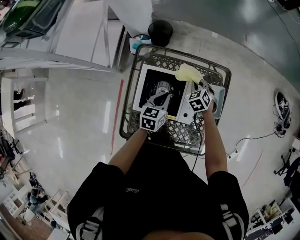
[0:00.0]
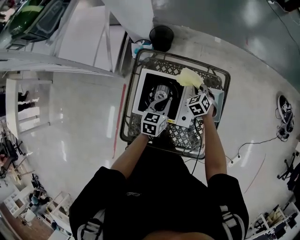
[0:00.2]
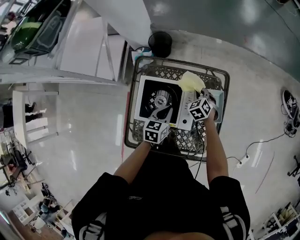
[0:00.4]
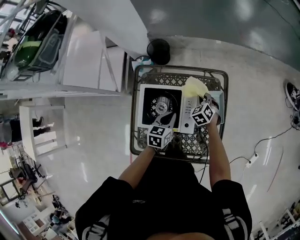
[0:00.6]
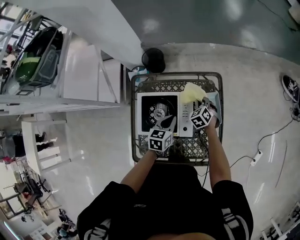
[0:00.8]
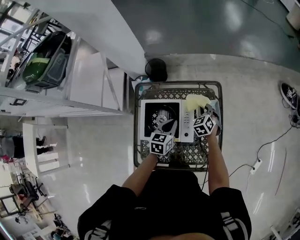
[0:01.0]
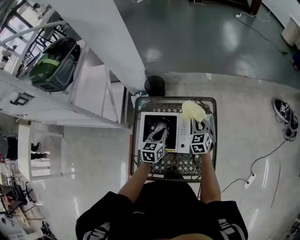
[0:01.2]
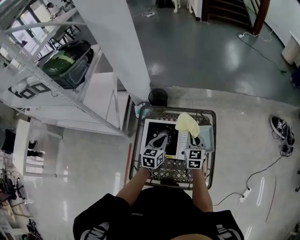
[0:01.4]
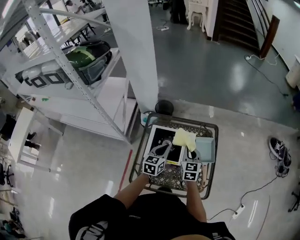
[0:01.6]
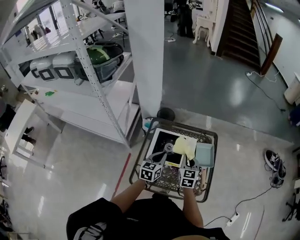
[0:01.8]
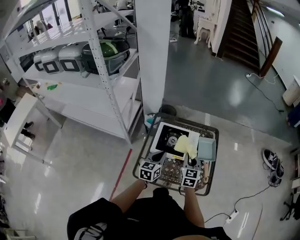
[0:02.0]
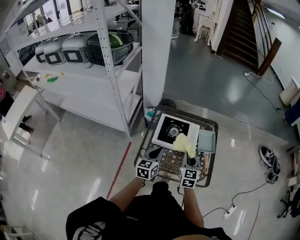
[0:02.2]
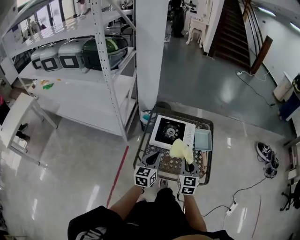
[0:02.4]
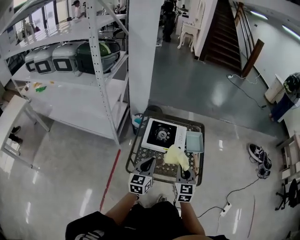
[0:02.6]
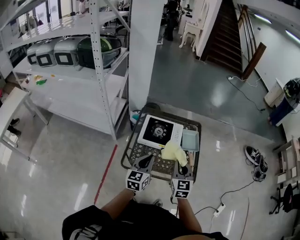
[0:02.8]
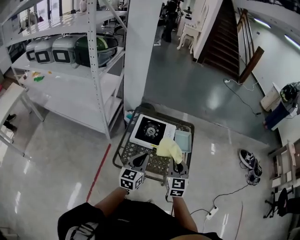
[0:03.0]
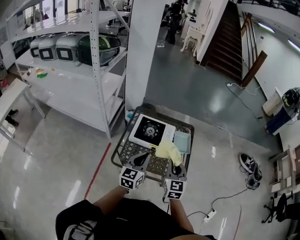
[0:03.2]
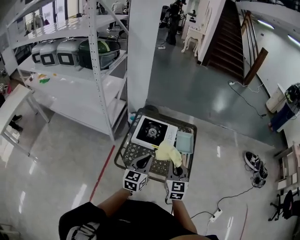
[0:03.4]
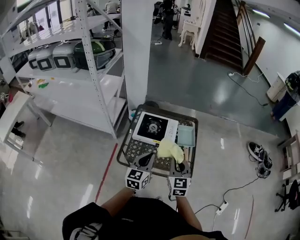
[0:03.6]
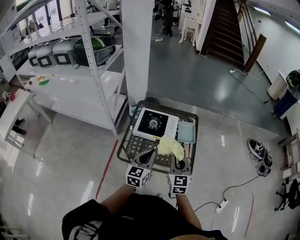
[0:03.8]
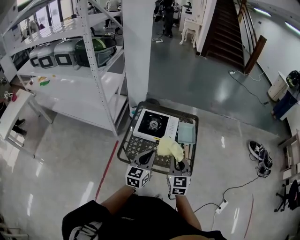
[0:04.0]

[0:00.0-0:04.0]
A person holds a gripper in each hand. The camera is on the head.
0.0 to 1.4 s: The right gripper moves upward and backward, some 20 cm, and tips its fingers upward by roughly 40 degrees. The left gripper heads upward, covering approximately 10 cm.
1.4 to 2.6 s: The two grippers go about 35 cm backward.
2.6 to 4.0 s: The left gripper goes some 10 cm to the right. Meanwhile the right gripper moves to the right, roughly 5 cm.

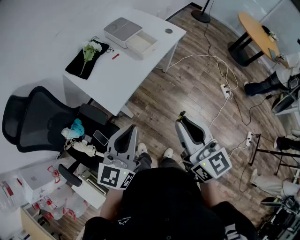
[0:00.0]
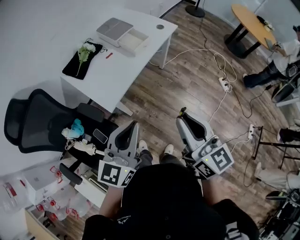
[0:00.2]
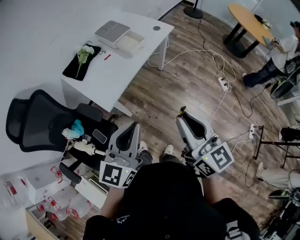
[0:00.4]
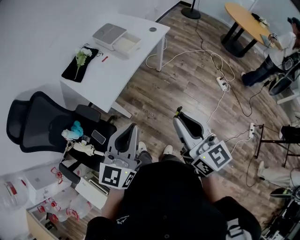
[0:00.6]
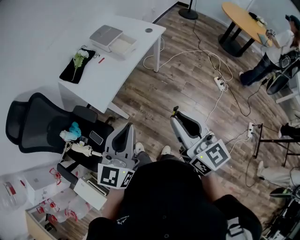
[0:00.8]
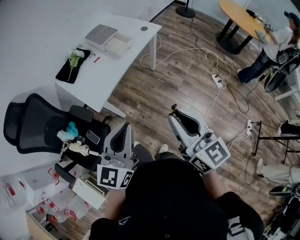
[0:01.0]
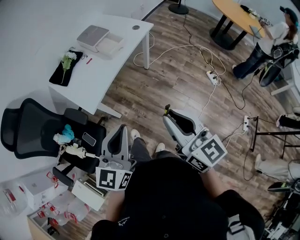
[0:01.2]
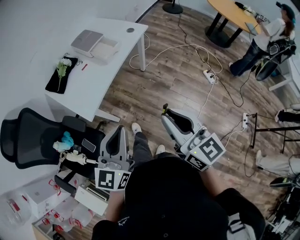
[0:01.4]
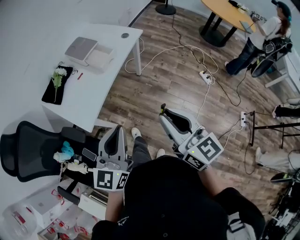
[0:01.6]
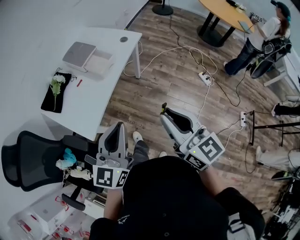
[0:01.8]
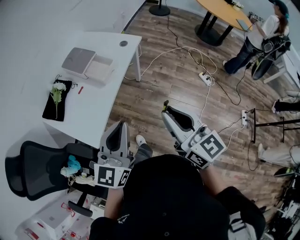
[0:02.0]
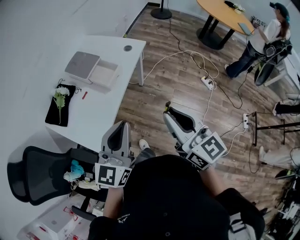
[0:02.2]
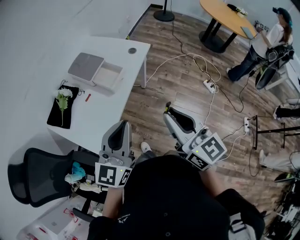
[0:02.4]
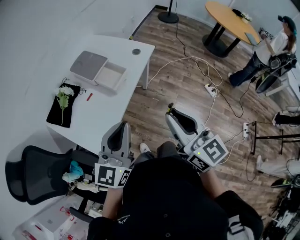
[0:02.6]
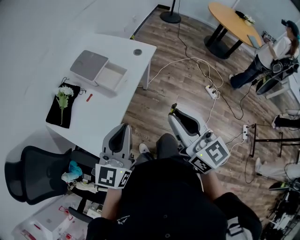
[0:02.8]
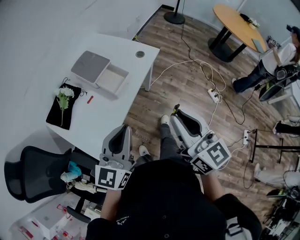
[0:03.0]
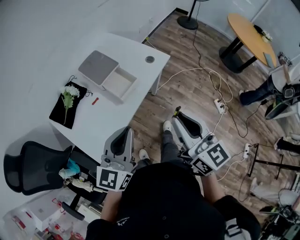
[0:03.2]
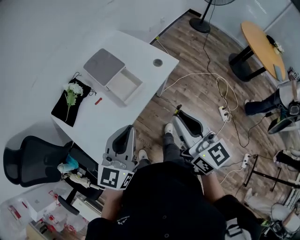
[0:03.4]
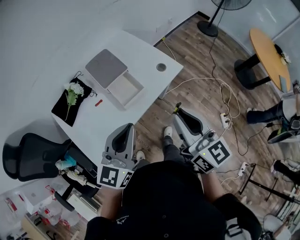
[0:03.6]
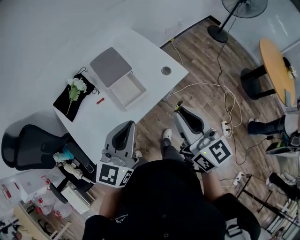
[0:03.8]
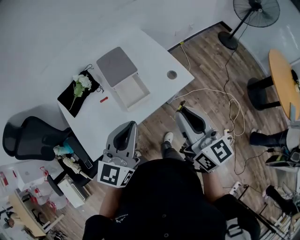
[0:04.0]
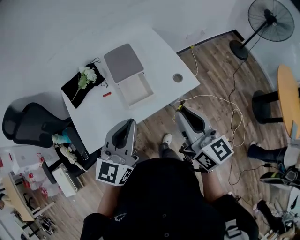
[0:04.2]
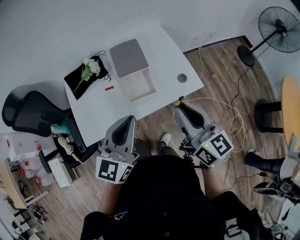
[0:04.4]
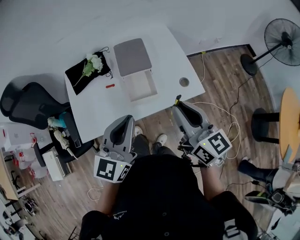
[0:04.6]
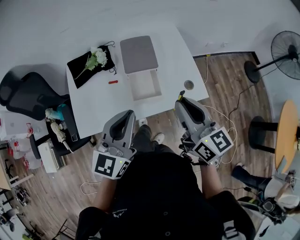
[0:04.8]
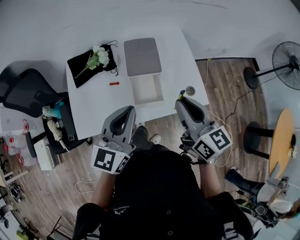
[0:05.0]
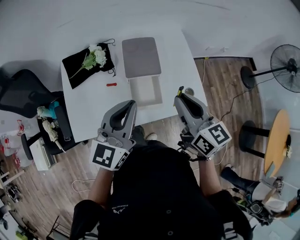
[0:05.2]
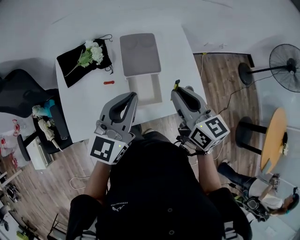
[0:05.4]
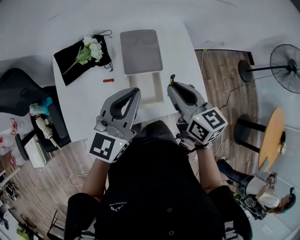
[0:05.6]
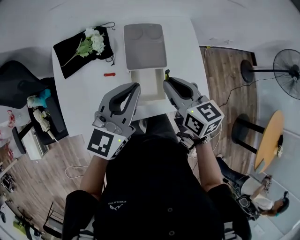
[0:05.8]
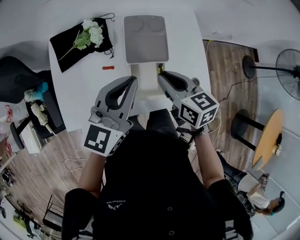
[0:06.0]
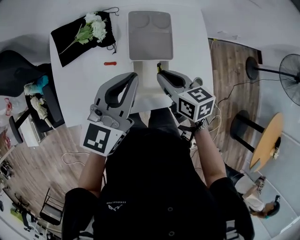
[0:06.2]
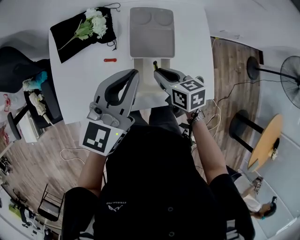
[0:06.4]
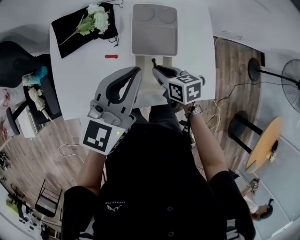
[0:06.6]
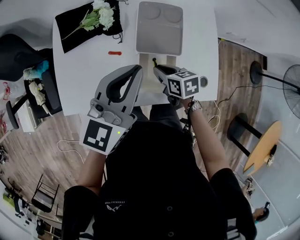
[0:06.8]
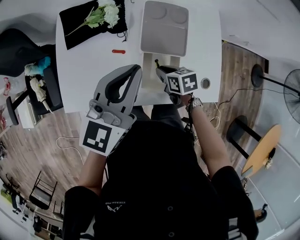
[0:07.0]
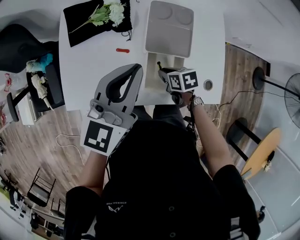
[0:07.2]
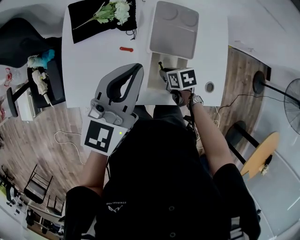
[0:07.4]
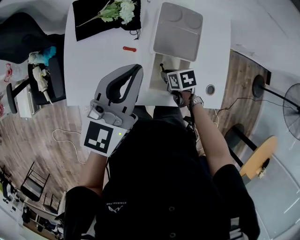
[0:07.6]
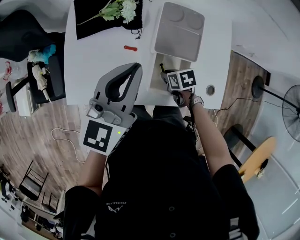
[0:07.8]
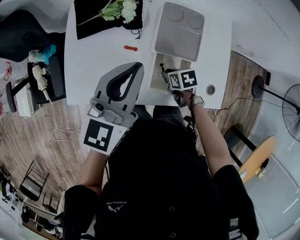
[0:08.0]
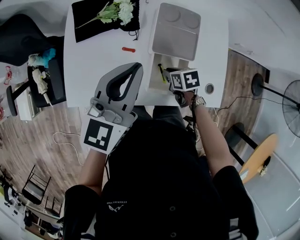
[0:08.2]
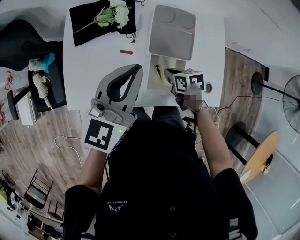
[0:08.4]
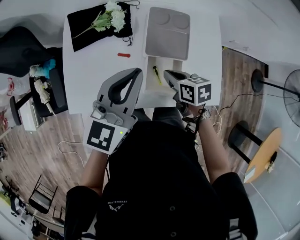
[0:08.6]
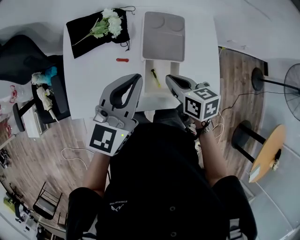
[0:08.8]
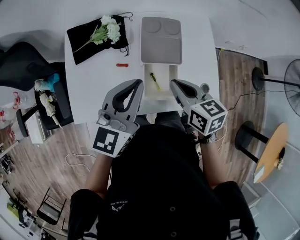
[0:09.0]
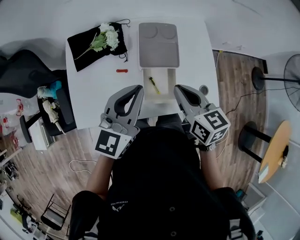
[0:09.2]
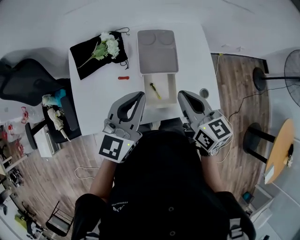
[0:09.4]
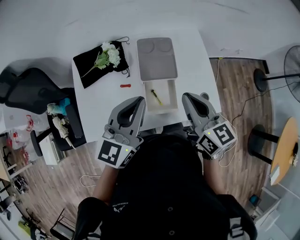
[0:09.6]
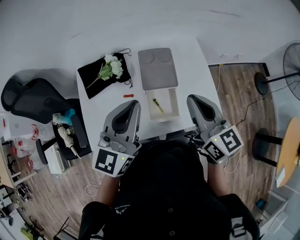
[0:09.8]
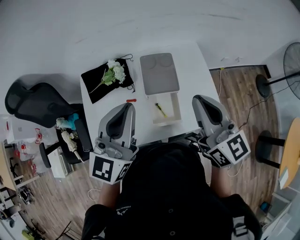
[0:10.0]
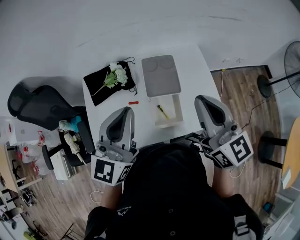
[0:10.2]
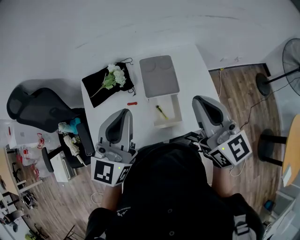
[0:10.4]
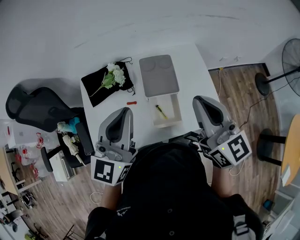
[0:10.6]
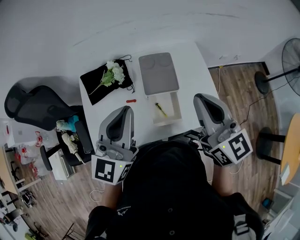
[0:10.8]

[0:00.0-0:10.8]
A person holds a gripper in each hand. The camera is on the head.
0.0 to 1.6 s: The two grippers go some 15 cm to the right.
1.6 to 3.0 s: The grippers both shift forward by some 20 cm.
3.0 to 4.6 s: The right gripper shifts by roughly 25 cm, and turns by roughly 40 degrees; the left gripper moves some 15 cm, and rotates roughly 40 degrees.
4.6 to 6.2 s: The left gripper travels forward by about 20 cm, while the right gripper is displaced forward, downward and to the left by approximately 30 cm, and angles its fingers downward, by roughly 30 degrees.
6.2 to 7.8 s: The left gripper heads to the left, covering approximately 5 cm. The right gripper is displaced downward by roughly 20 cm, and swivels roughly 40 degrees.
7.8 to 9.2 s: The right gripper moves upward, about 25 cm, and points its fingers about 40 degrees further upward, while the left gripper ends up roughly 5 cm from where it was.
9.2 to 10.8 s: The right gripper goes about 15 cm upward, and swivels about 30 degrees; the left gripper is displaced upward by some 10 cm.

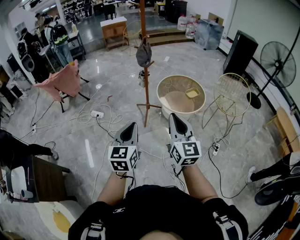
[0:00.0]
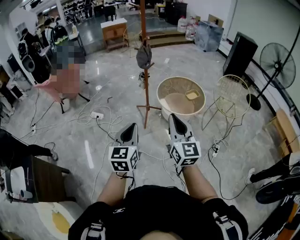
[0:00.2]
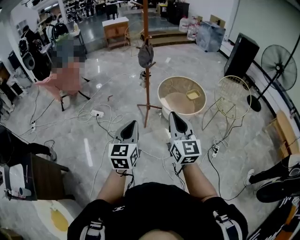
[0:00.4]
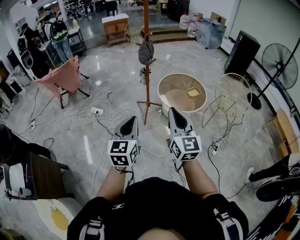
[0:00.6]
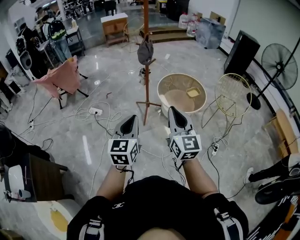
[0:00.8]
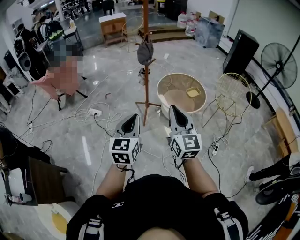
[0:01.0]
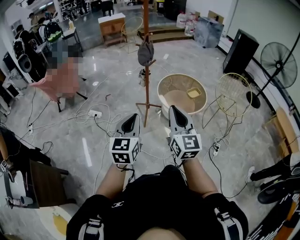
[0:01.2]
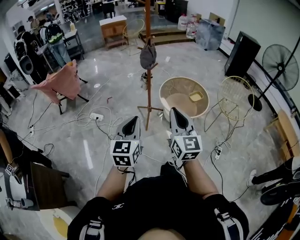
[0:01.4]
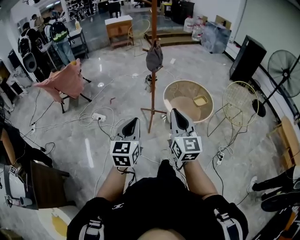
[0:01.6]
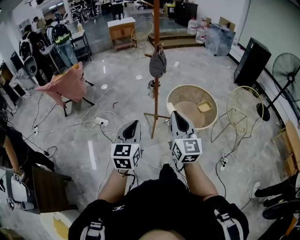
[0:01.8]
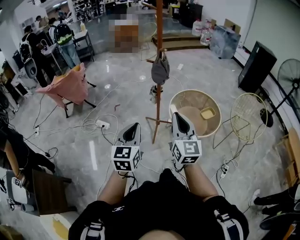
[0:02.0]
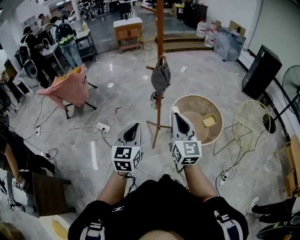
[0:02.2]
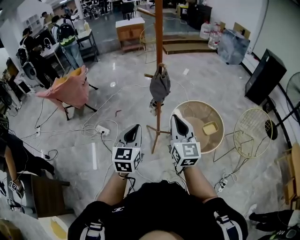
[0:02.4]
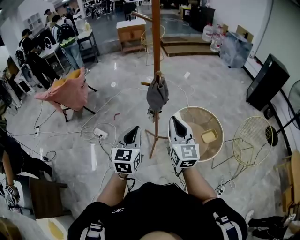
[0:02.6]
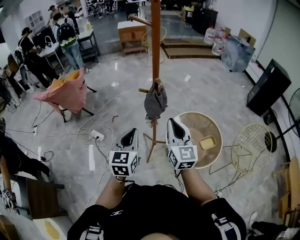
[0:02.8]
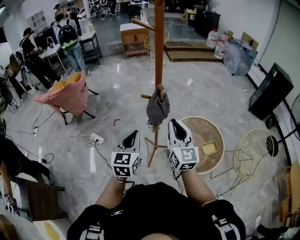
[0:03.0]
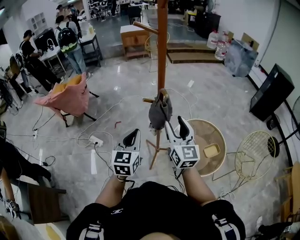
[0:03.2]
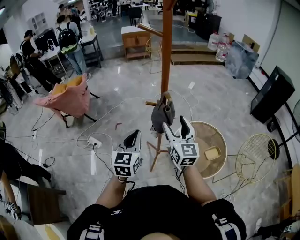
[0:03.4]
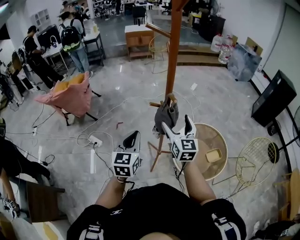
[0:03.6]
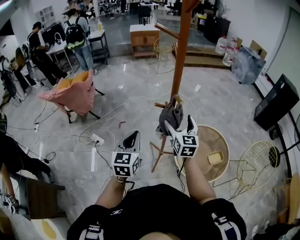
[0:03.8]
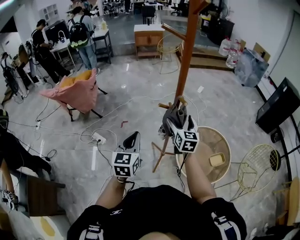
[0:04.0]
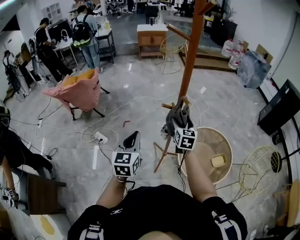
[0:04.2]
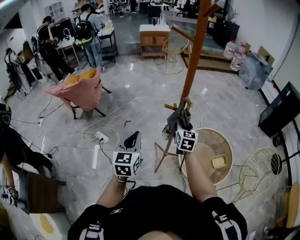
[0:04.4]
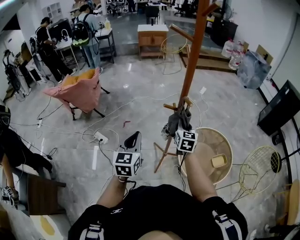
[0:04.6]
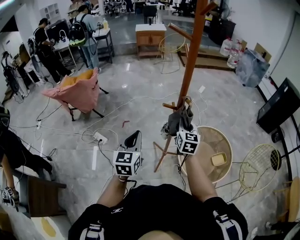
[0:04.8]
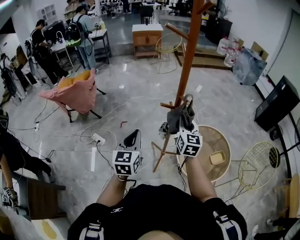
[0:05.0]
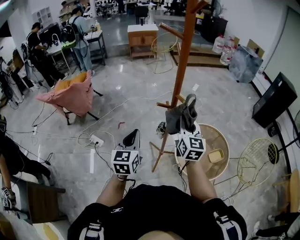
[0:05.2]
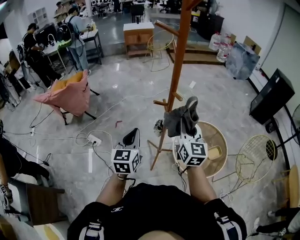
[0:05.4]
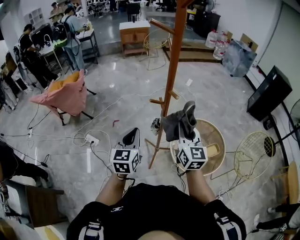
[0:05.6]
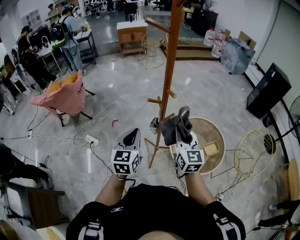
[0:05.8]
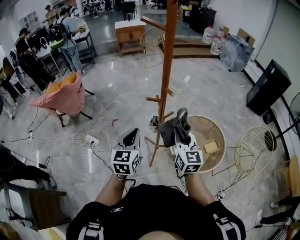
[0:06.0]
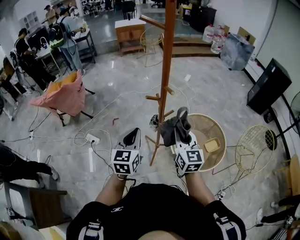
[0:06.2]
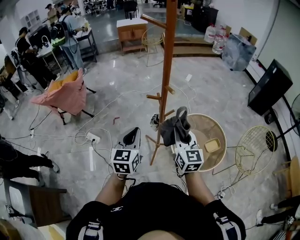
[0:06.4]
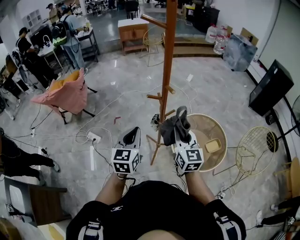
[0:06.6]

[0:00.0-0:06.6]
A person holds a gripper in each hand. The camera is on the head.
0.0 to 1.6 s: Both grippers move forward and to the left, some 20 cm.
1.6 to 3.2 s: The pair of grippers is taken forward, some 60 cm. The right gripper opens up.
3.2 to 5.0 s: The right gripper heads forward and downward, covering some 10 cm, and closes its fingers, while the left gripper shifts some 10 cm to the left.
5.0 to 6.6 s: The left gripper travels to the right by some 5 cm. The right gripper heads backward, covering some 10 cm.

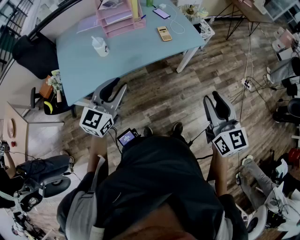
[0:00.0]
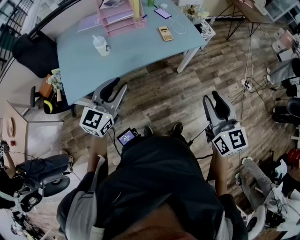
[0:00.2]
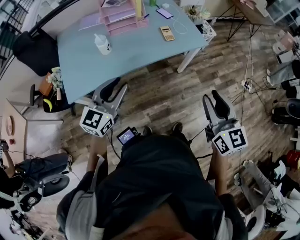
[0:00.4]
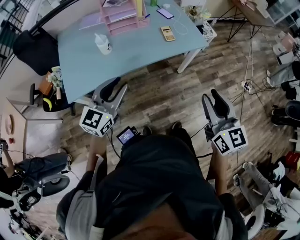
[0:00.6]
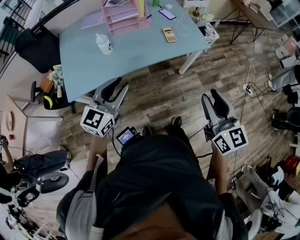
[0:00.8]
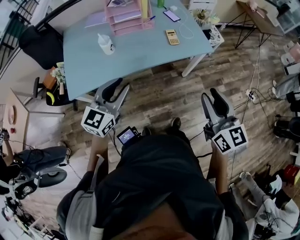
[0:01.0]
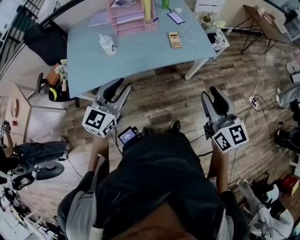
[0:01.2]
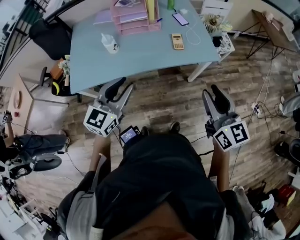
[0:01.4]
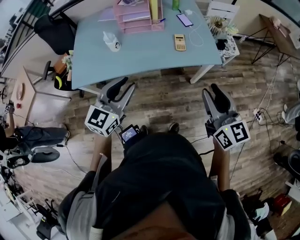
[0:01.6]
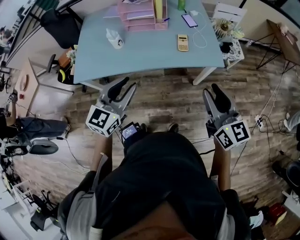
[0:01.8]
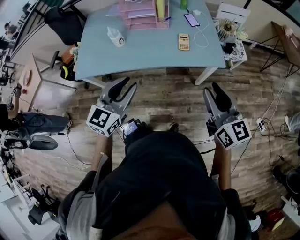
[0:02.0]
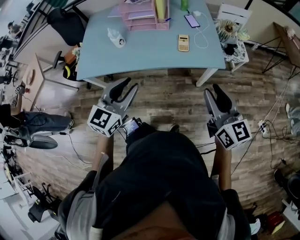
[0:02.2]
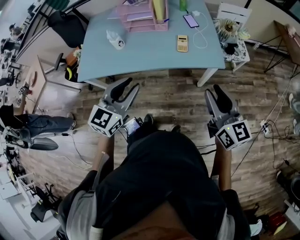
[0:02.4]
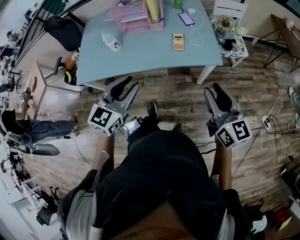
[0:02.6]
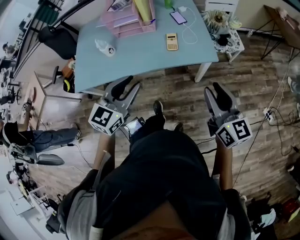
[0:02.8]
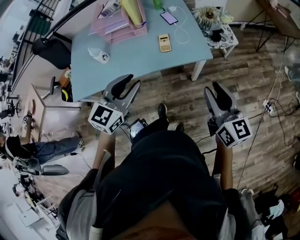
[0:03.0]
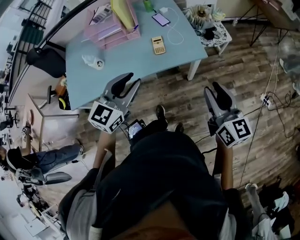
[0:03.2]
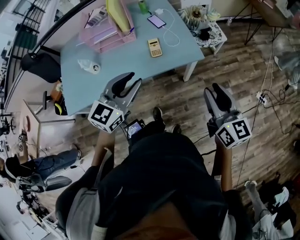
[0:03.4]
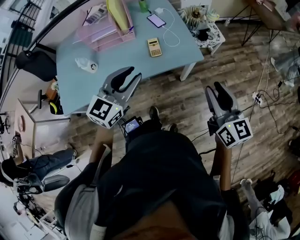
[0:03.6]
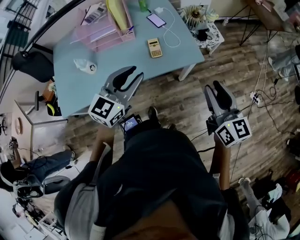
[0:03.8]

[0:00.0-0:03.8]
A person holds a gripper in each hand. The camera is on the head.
0.0 to 1.2 s: The right gripper heads forward, covering approximately 10 cm.
1.2 to 2.6 s: The right gripper moves to the right and forward, approximately 15 cm. The left gripper goes about 15 cm to the right.
2.6 to 3.8 s: The right gripper moves forward, approximately 5 cm. The left gripper travels forward by some 15 cm.
